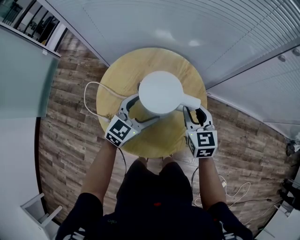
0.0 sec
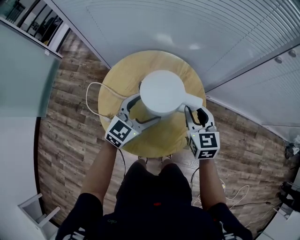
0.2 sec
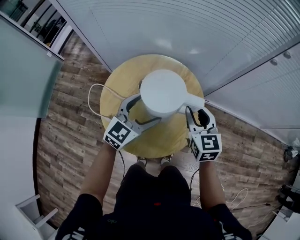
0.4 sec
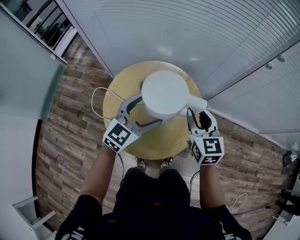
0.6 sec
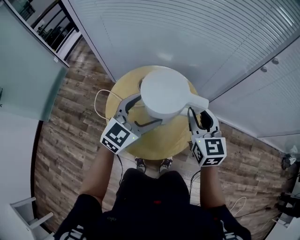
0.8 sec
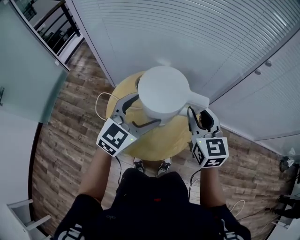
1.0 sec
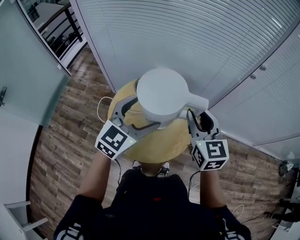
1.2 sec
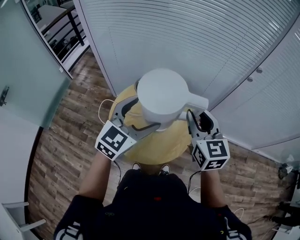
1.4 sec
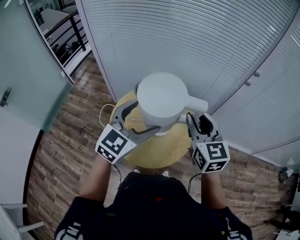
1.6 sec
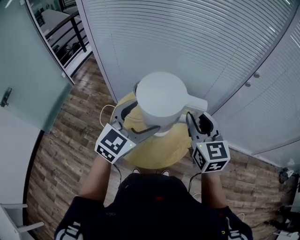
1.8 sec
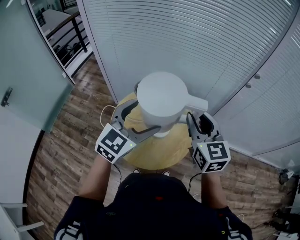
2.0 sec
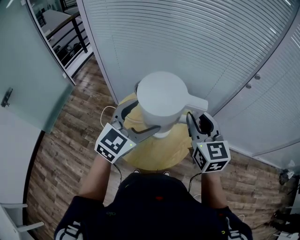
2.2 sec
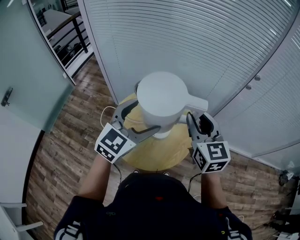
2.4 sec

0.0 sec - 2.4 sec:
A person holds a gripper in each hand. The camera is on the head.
0.0 sec - 1.2 sec: The grippers both shift upward by some 25 cm.
1.2 sec - 2.4 sec: The right gripper ends up approximately 5 cm from where it was. The left gripper goes approximately 5 cm upward.

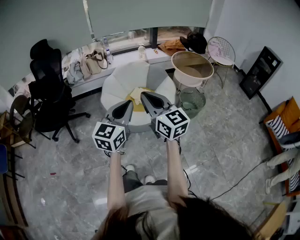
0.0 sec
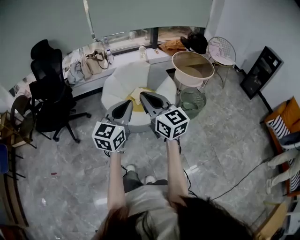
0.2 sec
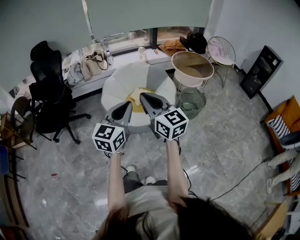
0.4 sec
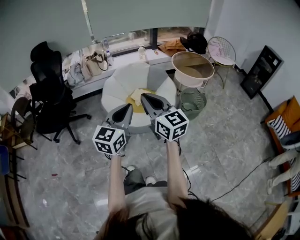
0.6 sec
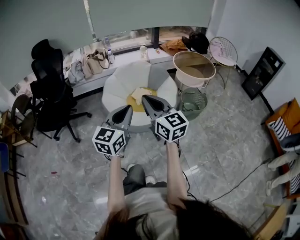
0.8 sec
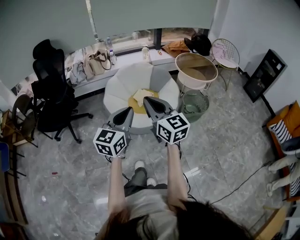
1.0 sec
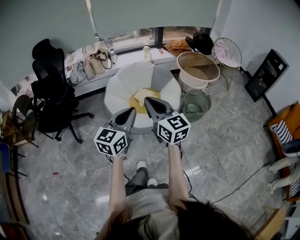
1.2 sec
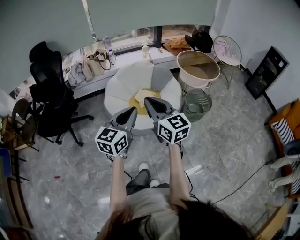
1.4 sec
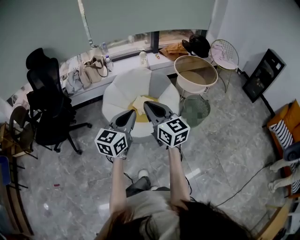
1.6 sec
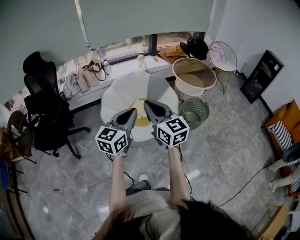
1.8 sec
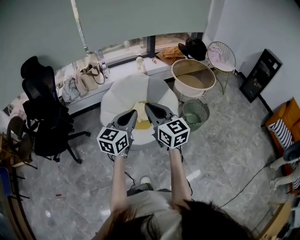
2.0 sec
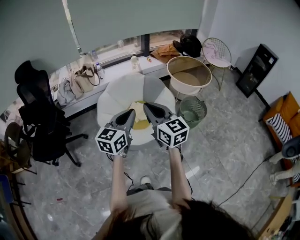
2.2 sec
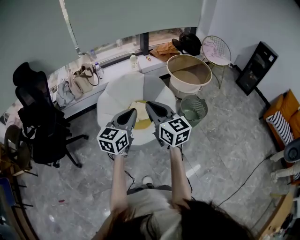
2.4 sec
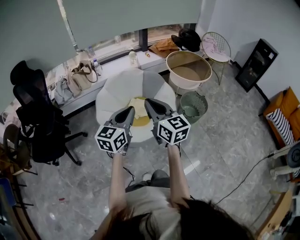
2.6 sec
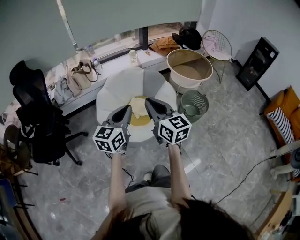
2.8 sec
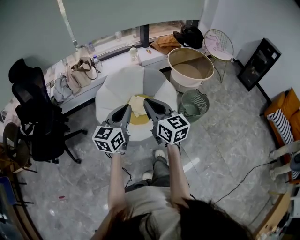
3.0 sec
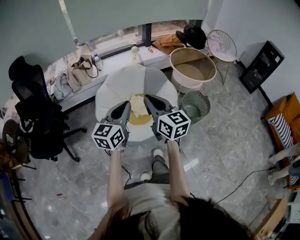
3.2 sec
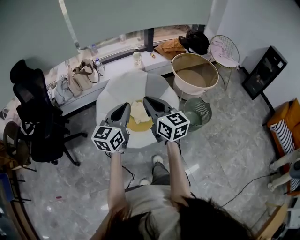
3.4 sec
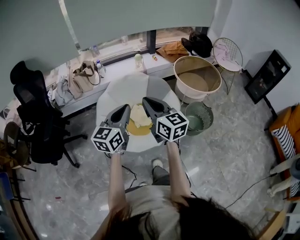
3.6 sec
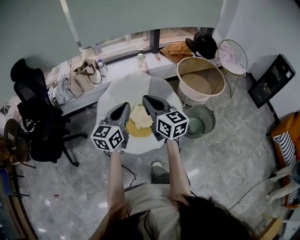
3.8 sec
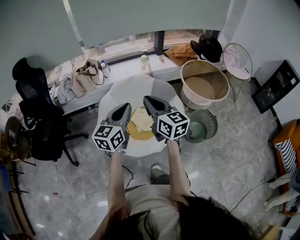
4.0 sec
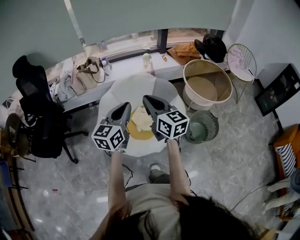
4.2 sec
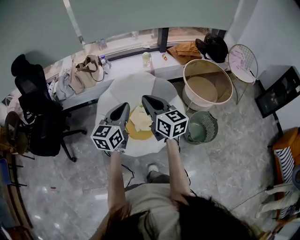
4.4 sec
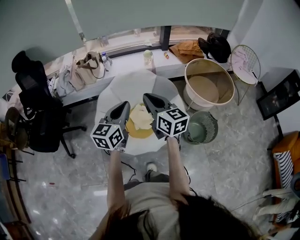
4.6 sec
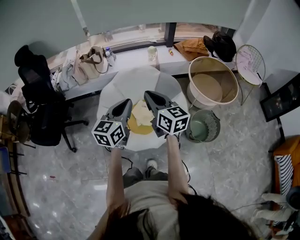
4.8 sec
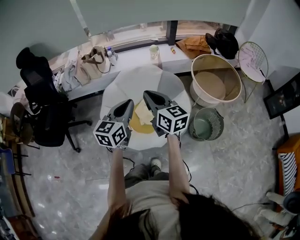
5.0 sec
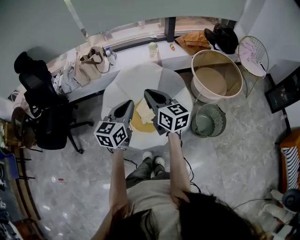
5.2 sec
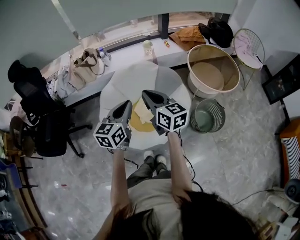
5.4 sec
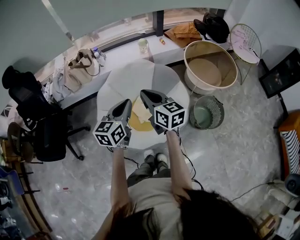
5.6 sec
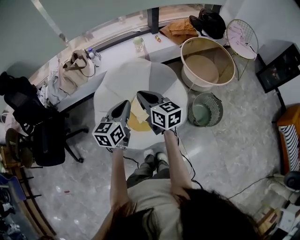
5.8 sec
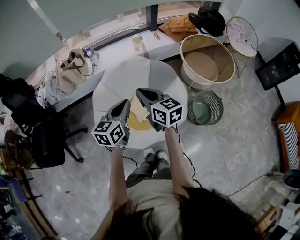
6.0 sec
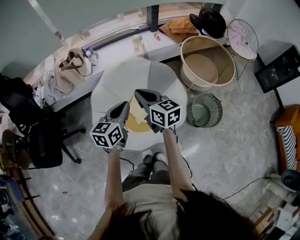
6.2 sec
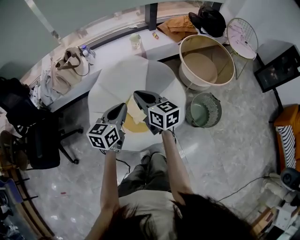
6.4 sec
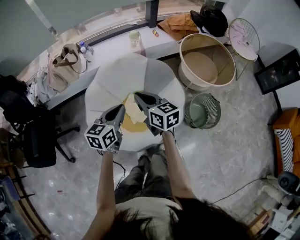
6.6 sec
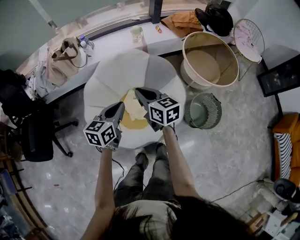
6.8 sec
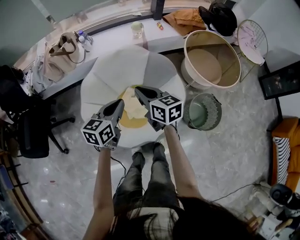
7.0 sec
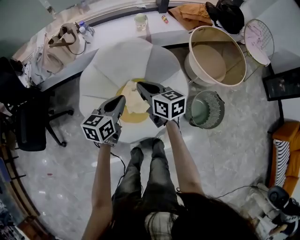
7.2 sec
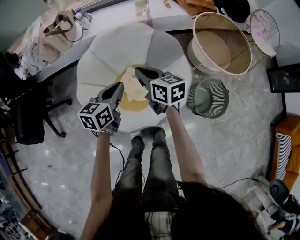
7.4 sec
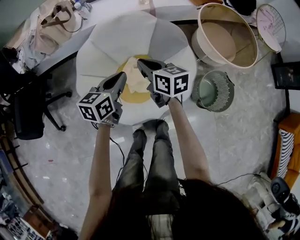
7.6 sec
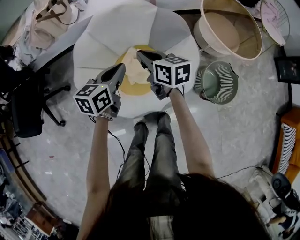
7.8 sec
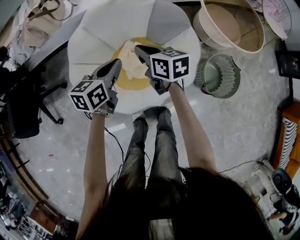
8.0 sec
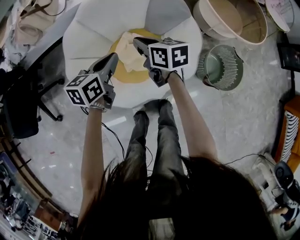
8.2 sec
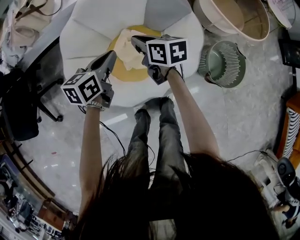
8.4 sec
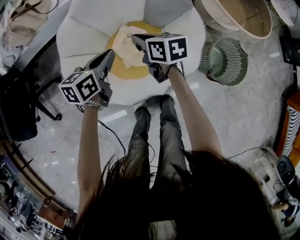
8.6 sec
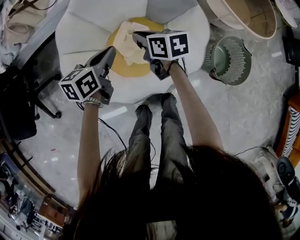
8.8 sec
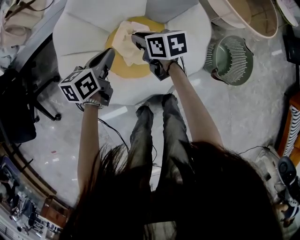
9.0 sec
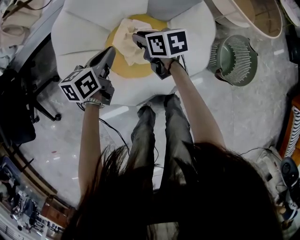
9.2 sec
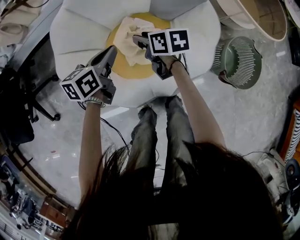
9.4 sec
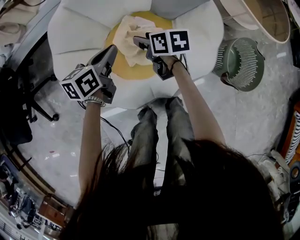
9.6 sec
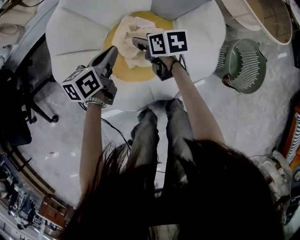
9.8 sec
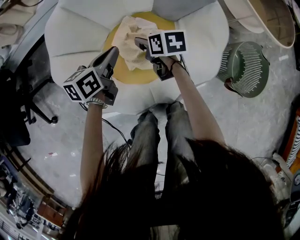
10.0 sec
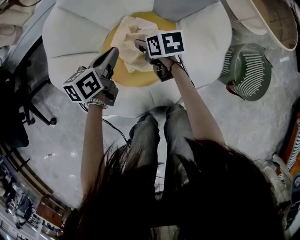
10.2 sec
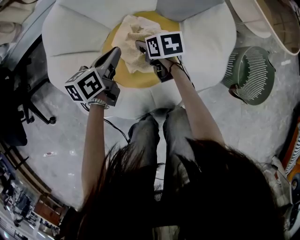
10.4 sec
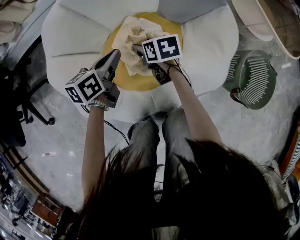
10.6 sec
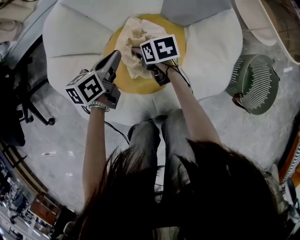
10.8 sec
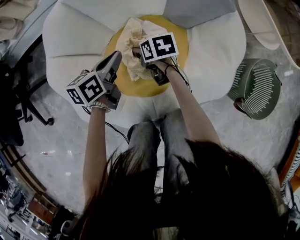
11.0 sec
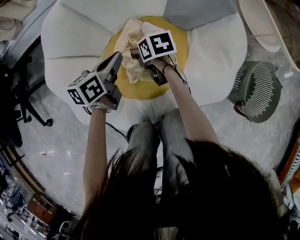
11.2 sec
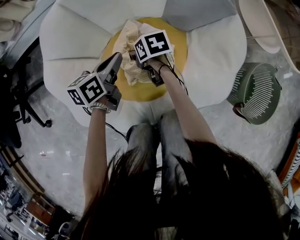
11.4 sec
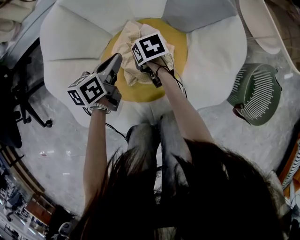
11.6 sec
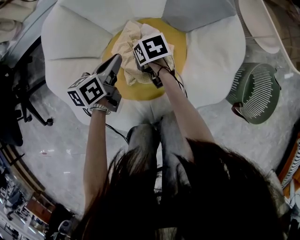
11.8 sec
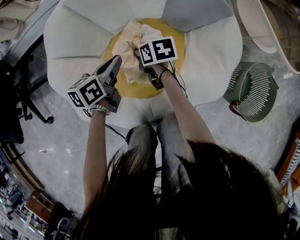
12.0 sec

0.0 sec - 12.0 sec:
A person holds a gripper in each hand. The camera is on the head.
0.0 sec - 1.6 sec: Both grippers move forward, some 10 cm.
1.6 sec - 3.0 sec: The grippers both shift forward by roughly 15 cm.
3.0 sec - 4.4 sec: The grippers both shift forward by approximately 20 cm.
4.4 sec - 6.0 sec: The grippers both shift forward and downward by approximately 10 cm.
6.0 sec - 7.6 sec: The grippers both shift downward by approximately 20 cm.
7.6 sec - 9.0 sec: Both grippers travel together downward, roughly 20 cm.
9.0 sec - 10.4 sec: The grippers both shift downward by some 15 cm. The right gripper opens its fingers.
10.4 sec - 12.0 sec: The right gripper closes up.

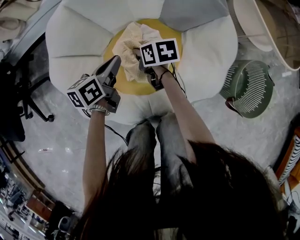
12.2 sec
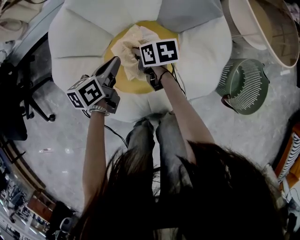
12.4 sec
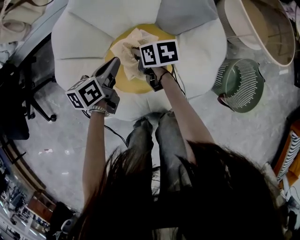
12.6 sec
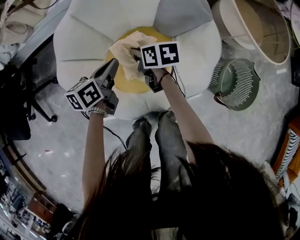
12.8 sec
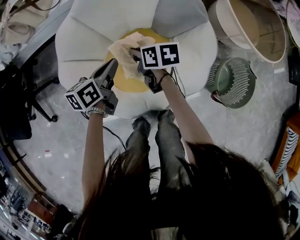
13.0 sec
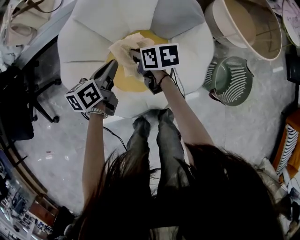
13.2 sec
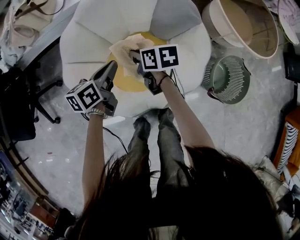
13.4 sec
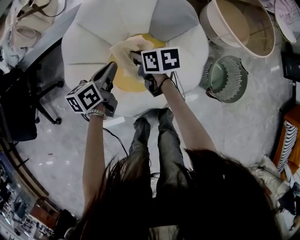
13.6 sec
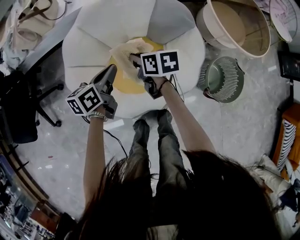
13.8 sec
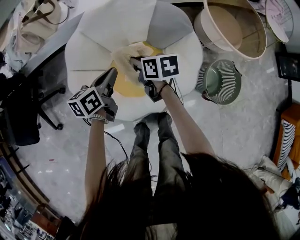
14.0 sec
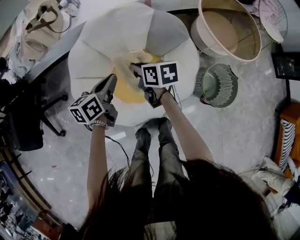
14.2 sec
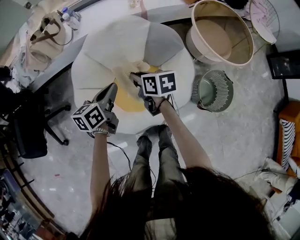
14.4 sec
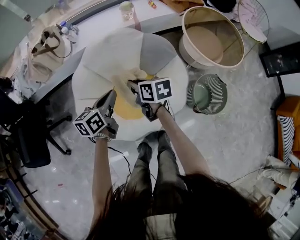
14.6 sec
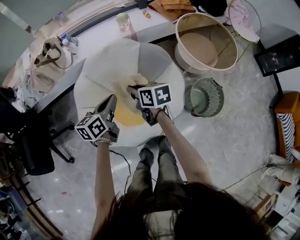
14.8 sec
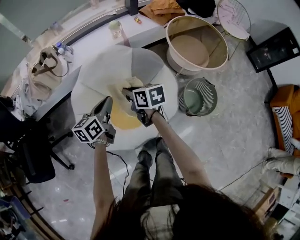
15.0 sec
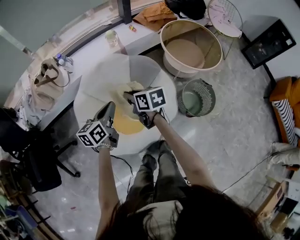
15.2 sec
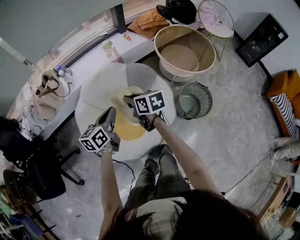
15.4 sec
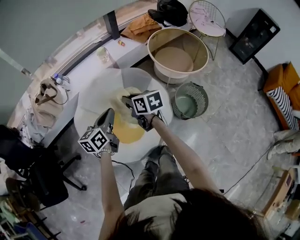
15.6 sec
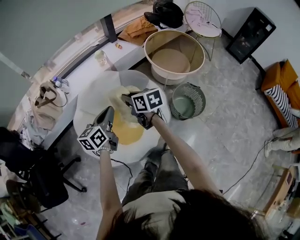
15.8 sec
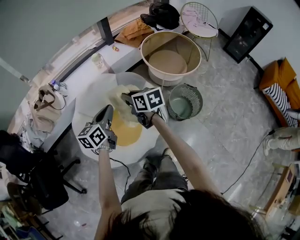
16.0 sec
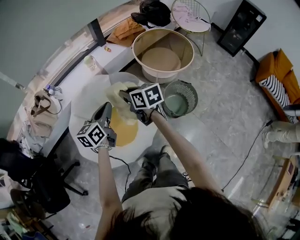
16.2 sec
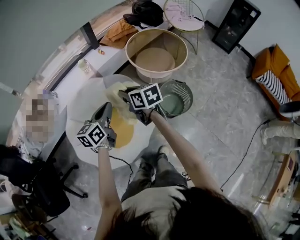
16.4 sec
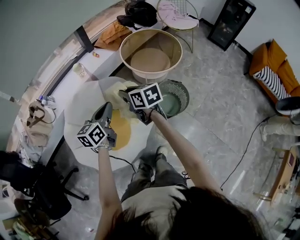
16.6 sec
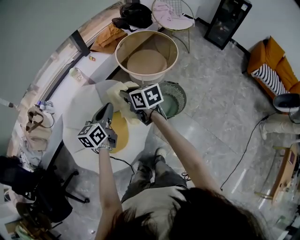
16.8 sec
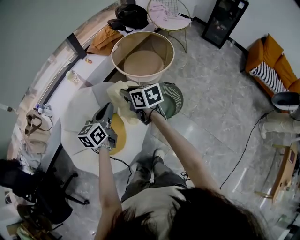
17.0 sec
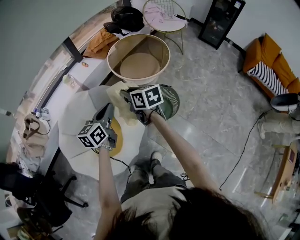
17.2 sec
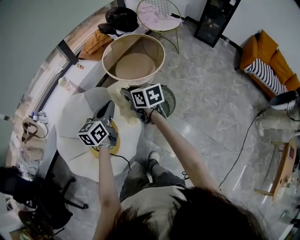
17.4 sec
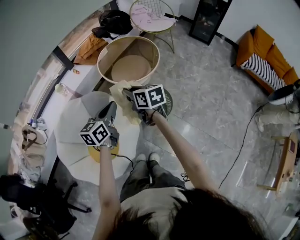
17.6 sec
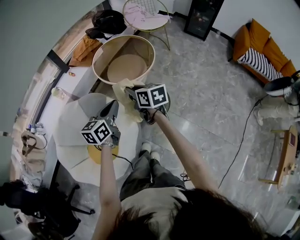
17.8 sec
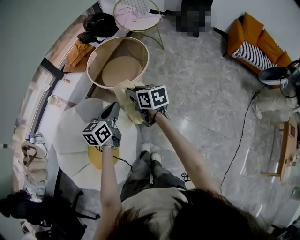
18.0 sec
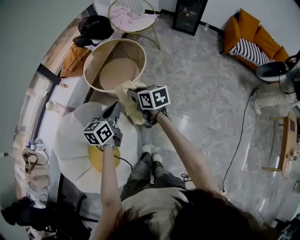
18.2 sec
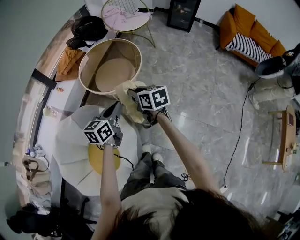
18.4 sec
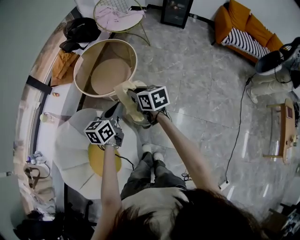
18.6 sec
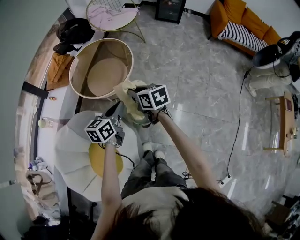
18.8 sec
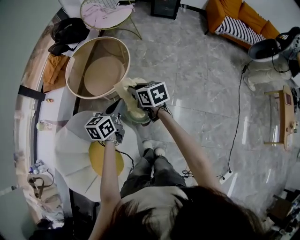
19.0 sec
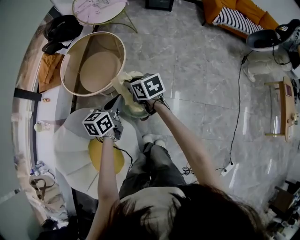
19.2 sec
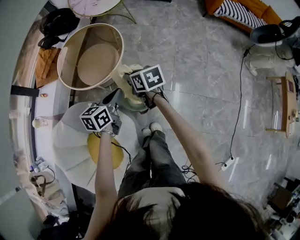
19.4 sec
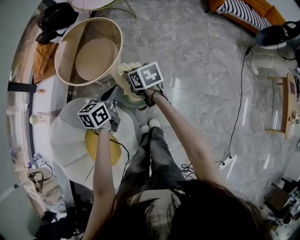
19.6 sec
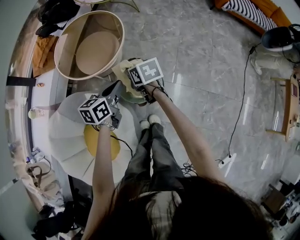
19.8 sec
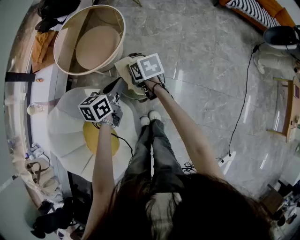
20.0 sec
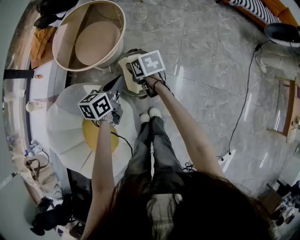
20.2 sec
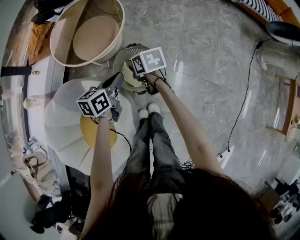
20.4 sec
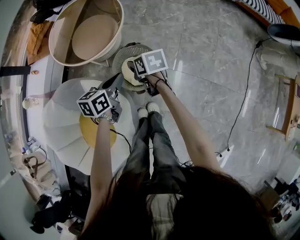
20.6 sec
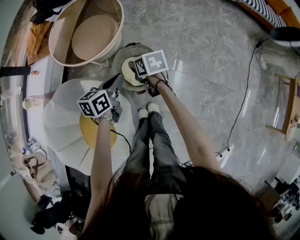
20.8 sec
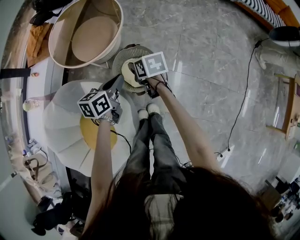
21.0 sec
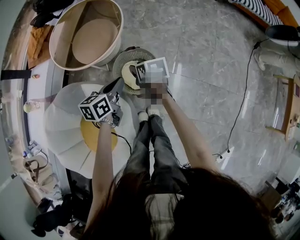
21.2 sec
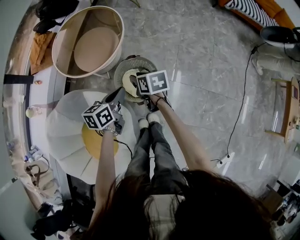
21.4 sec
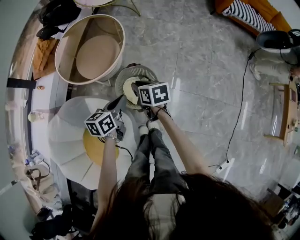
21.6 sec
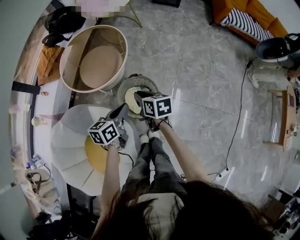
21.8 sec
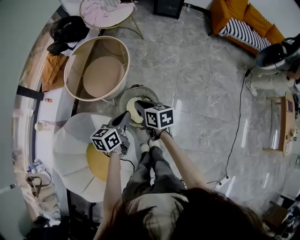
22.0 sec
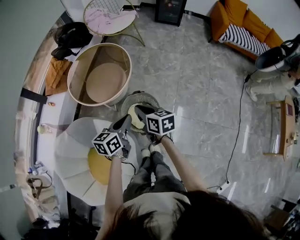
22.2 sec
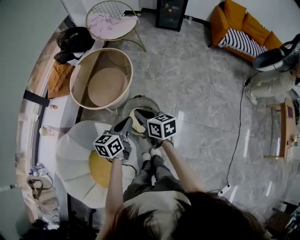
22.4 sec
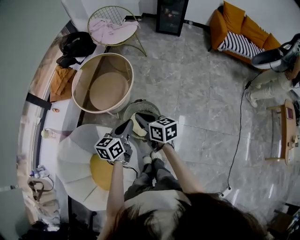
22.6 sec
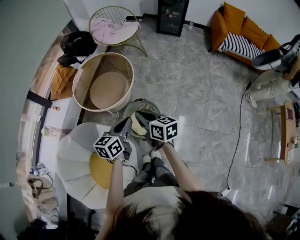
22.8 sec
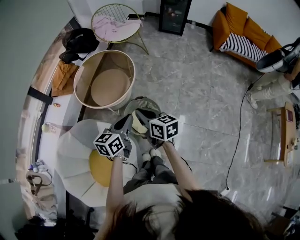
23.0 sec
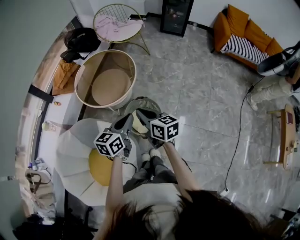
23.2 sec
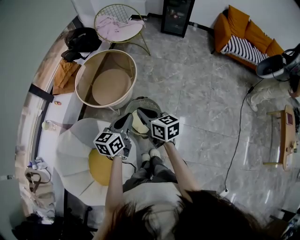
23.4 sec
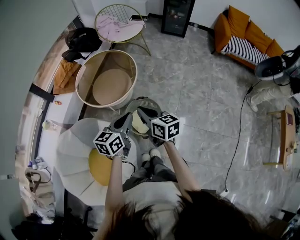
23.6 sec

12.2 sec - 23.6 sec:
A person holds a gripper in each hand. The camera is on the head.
12.2 sec - 13.6 sec: Both grippers move upward, about 20 cm.
13.6 sec - 15.0 sec: Both grippers move upward, about 20 cm.
15.0 sec - 16.4 sec: The grippers both shift to the right and upward by about 20 cm.
16.4 sec - 17.8 sec: The grippers both shift to the right by roughly 25 cm.
17.8 sec - 19.4 sec: The right gripper shifts about 20 cm forward, downward and to the right, and rotates approximately 20 degrees. Meanwhile the left gripper goes some 20 cm forward, to the right and downward, and turns by about 30 degrees.
19.4 sec - 20.8 sec: Both grippers travel together downward, approximately 10 cm.
20.8 sec - 22.2 sec: Both grippers move upward, about 15 cm. The right gripper turns by roughly 20 degrees, and closes.
22.2 sec - 23.6 sec: Both grippers move upward, about 5 cm.
